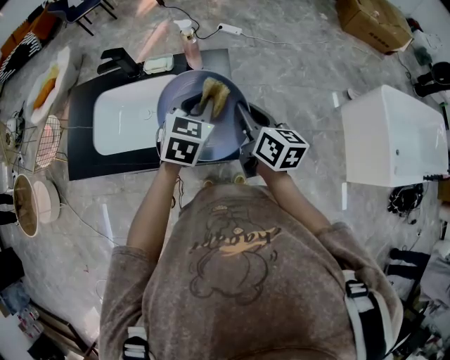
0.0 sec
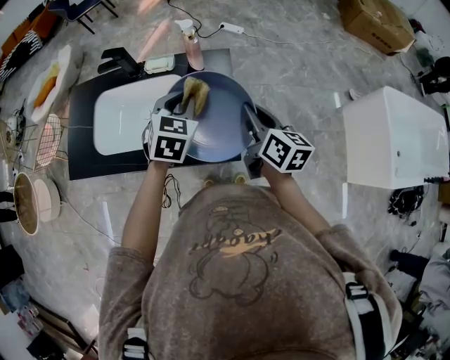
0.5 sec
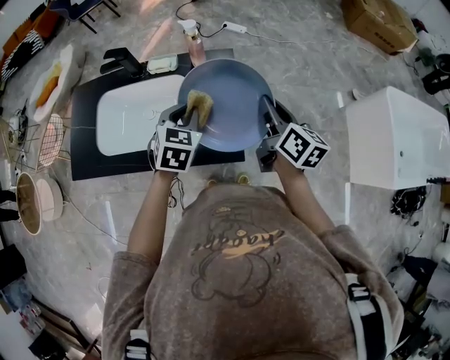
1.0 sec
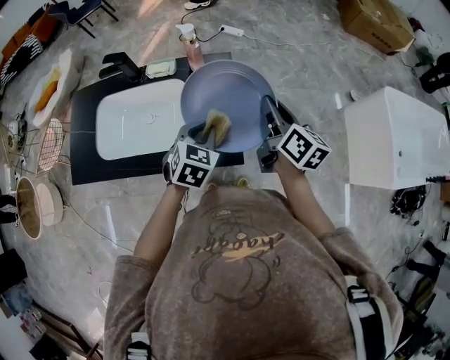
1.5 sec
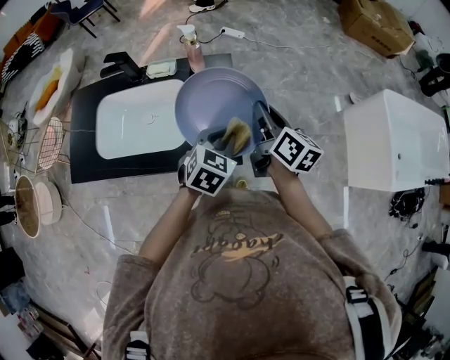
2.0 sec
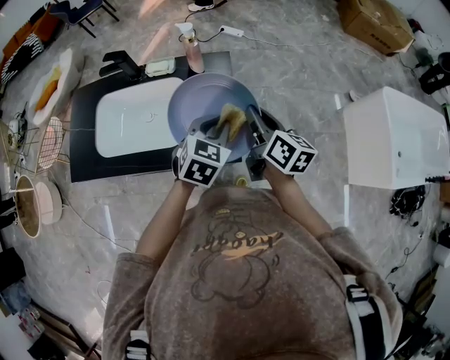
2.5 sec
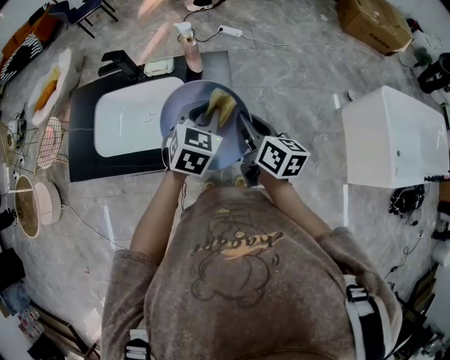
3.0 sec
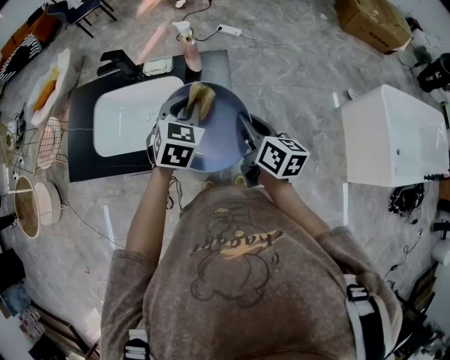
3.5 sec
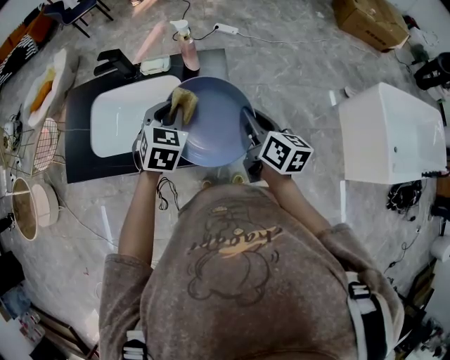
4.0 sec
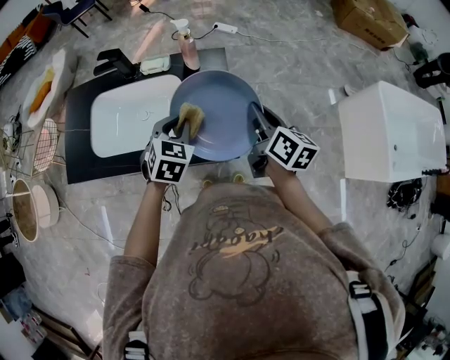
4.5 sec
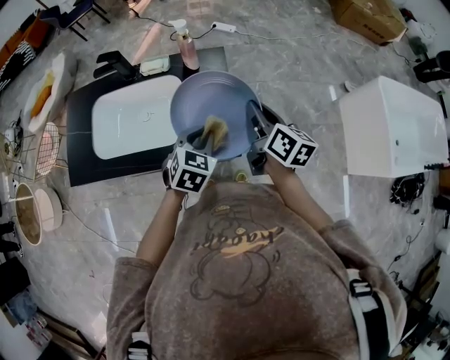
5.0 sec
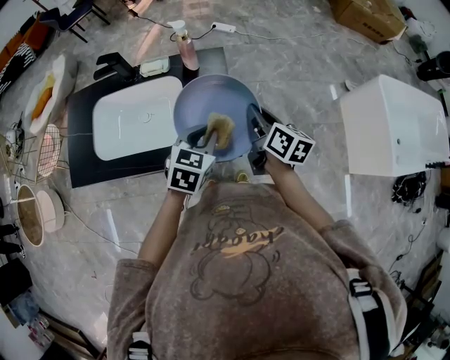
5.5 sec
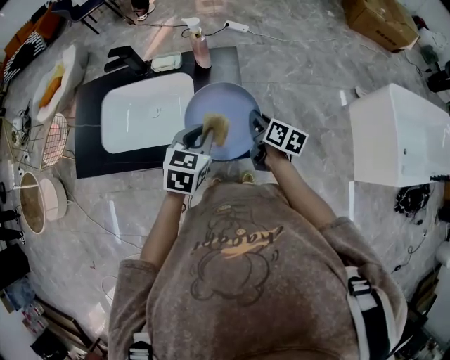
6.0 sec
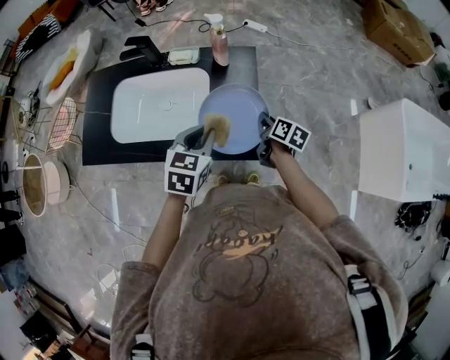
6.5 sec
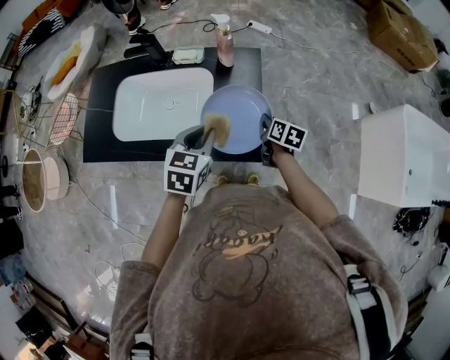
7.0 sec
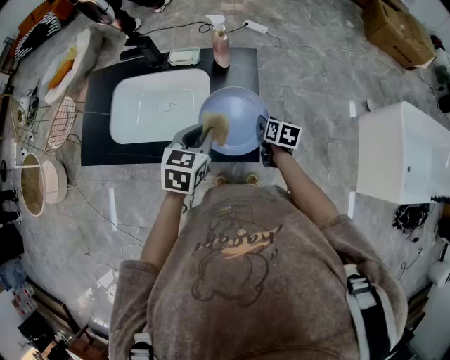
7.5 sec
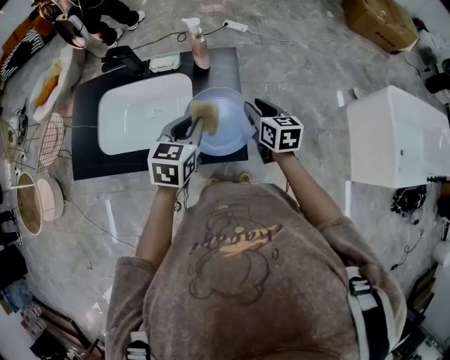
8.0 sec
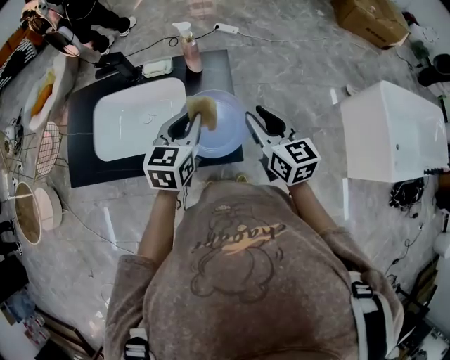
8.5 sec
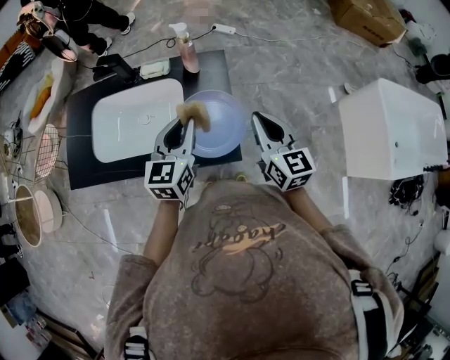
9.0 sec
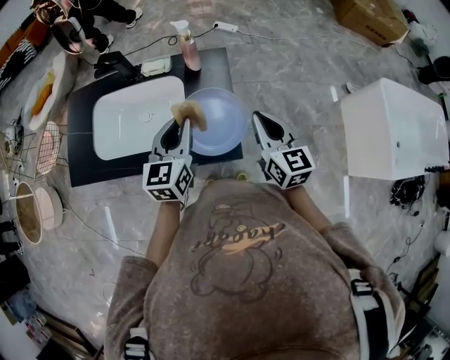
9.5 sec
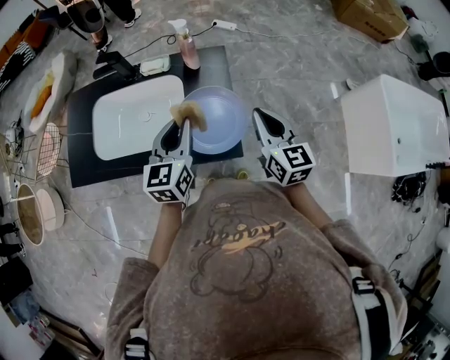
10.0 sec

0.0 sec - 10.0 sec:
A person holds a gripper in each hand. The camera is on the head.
0.0 sec - 2.0 sec: The left gripper goes some 10 cm backward and downward. Meanwhile the right gripper shifts by roughly 5 cm.
2.0 sec - 4.0 sec: The left gripper goes about 15 cm to the left and forward.
4.0 sec - 6.0 sec: The right gripper heads downward, covering about 10 cm. Meanwhile the left gripper travels backward by approximately 5 cm.
6.0 sec - 8.0 sec: The right gripper reaches approximately 10 cm downward, then returns, swivels about 30 degrees, and opens up.
8.0 sec - 10.0 sec: The right gripper is displaced upward and backward by roughly 10 cm, and closes, while the left gripper turns by about 20 degrees.

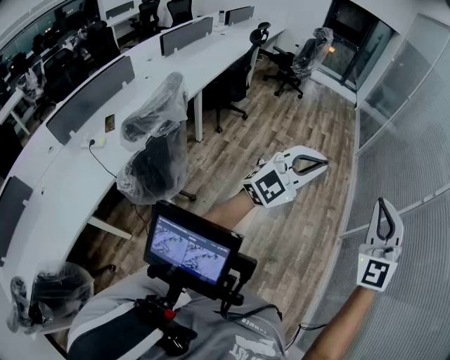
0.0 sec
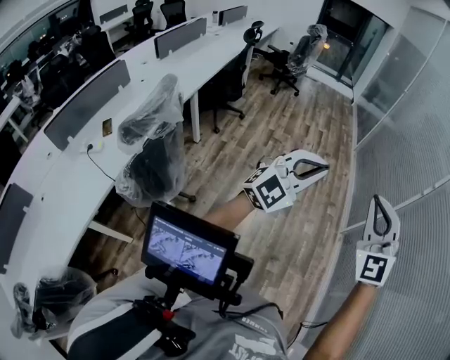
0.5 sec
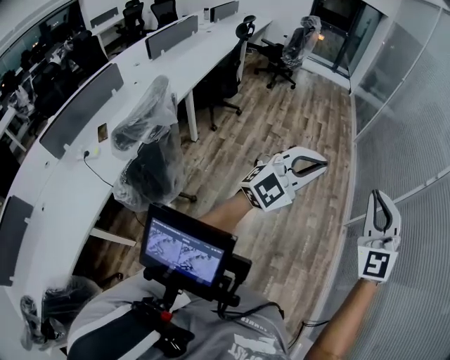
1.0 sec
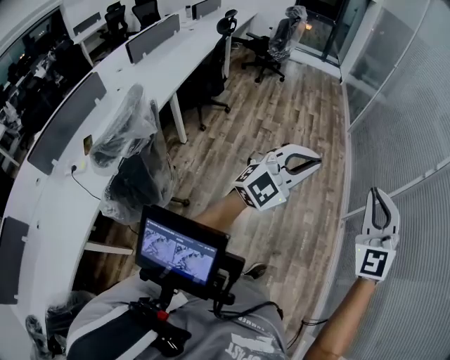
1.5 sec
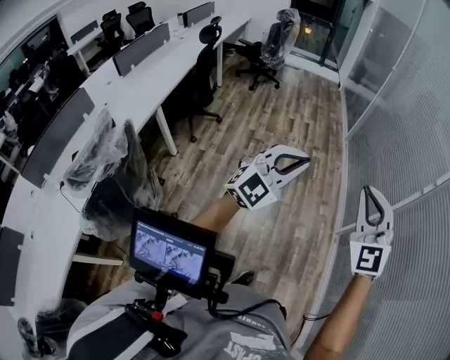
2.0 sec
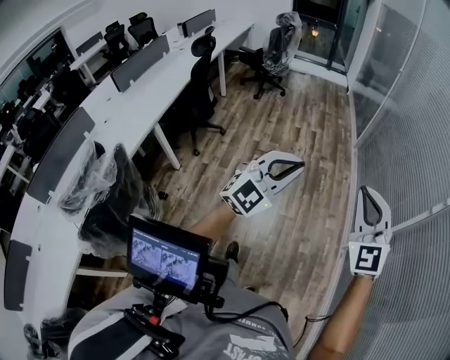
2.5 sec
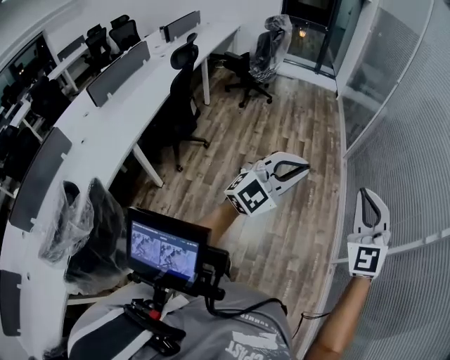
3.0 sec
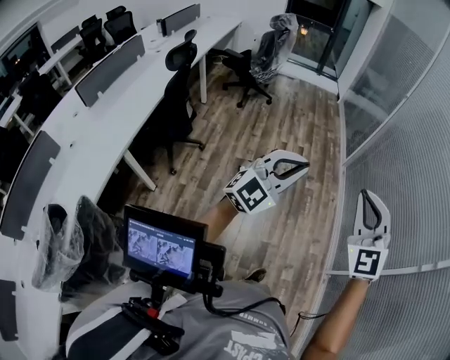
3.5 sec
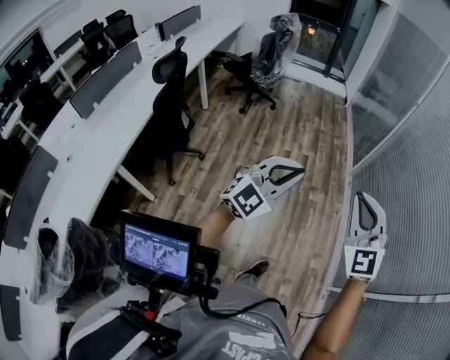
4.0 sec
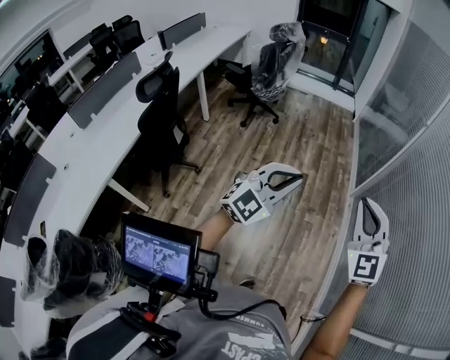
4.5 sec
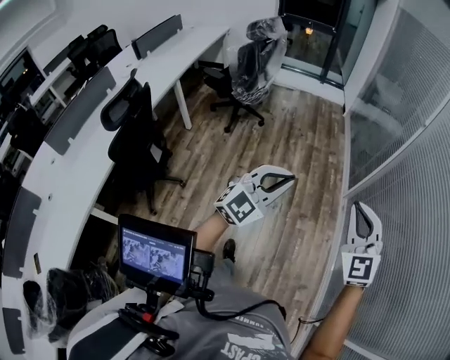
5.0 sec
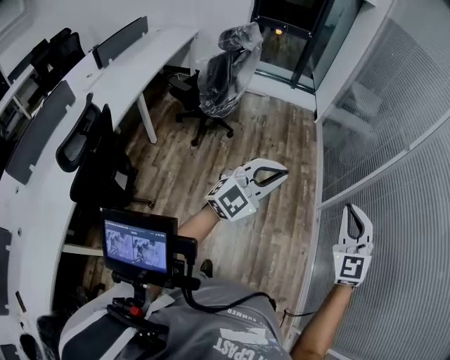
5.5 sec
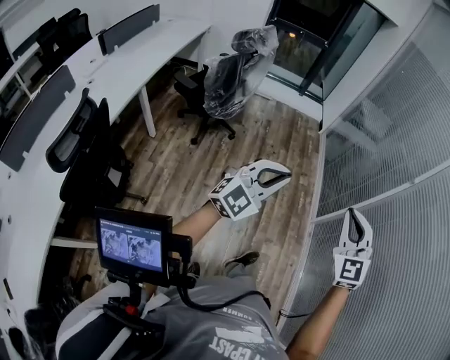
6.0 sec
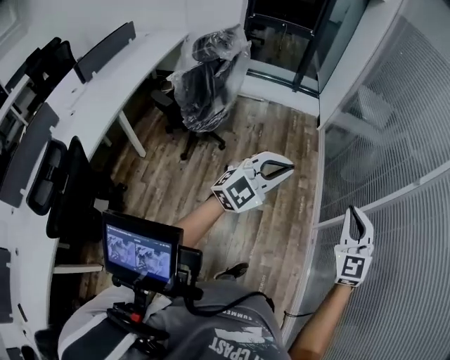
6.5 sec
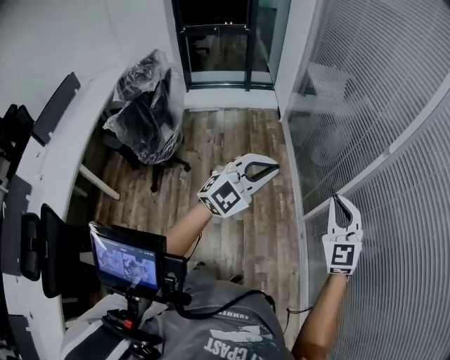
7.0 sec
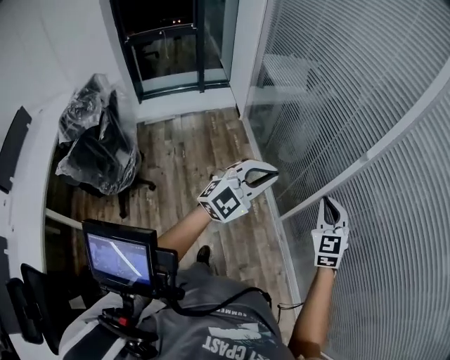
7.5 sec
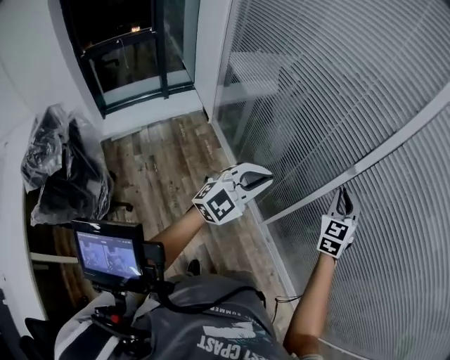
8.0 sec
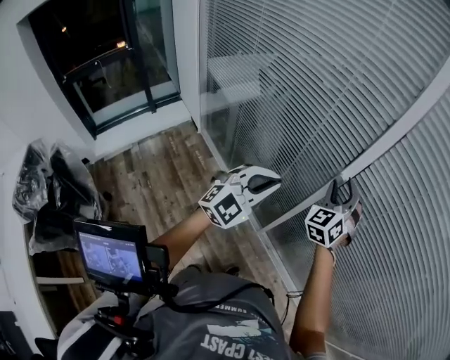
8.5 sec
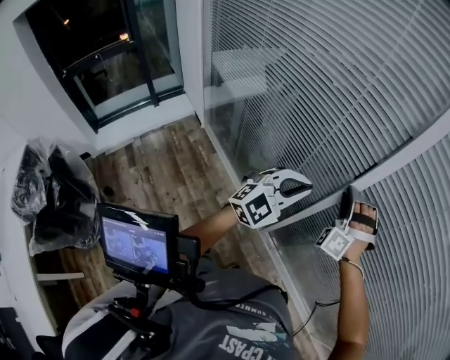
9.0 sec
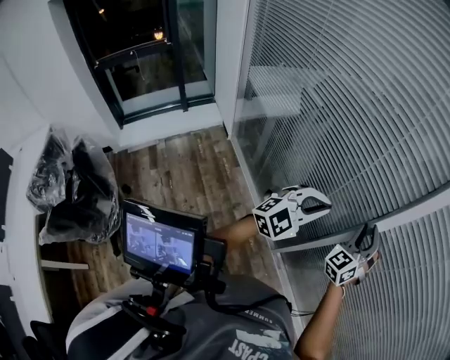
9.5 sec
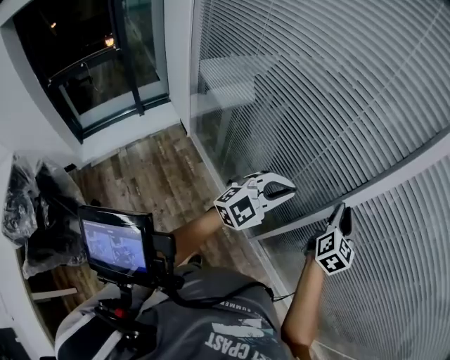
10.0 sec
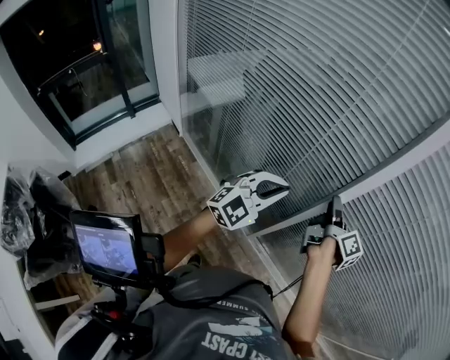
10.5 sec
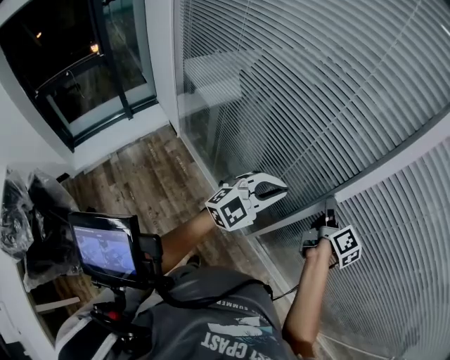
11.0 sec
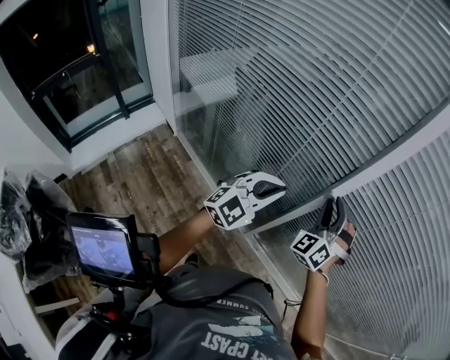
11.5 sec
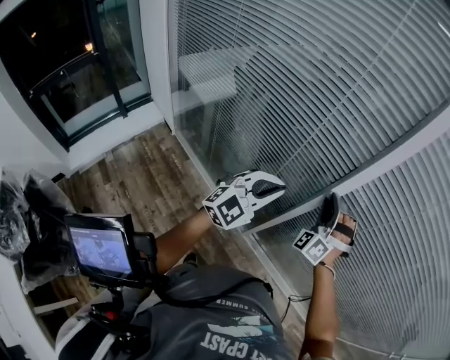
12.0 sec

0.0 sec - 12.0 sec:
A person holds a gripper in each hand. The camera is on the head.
0.0 sec - 2.0 sec: The grippers both shift forward by about 25 cm.
2.0 sec - 4.0 sec: The two grippers travel together, forward, some 60 cm.
4.0 sec - 6.0 sec: Both grippers are carried forward, about 60 cm.
6.0 sec - 8.0 sec: Both grippers are carried roughly 70 cm. The left gripper changes its angle by some 40 degrees, while the right gripper turns by some 60 degrees.
8.0 sec - 10.0 sec: The grippers both shift forward by approximately 20 cm. The right gripper twists some 40 degrees clockwise, seen from behind, and opens, then closes again.
10.0 sec - 12.0 sec: The right gripper twists some 90 degrees counterclockwise, seen from behind.

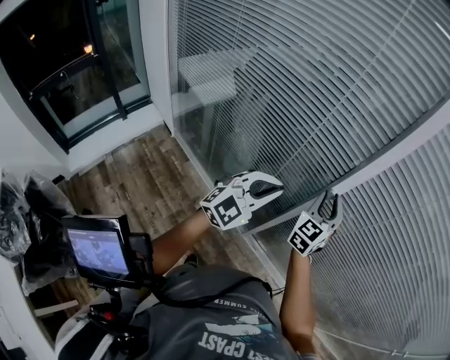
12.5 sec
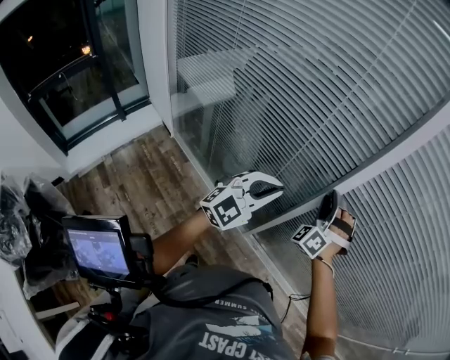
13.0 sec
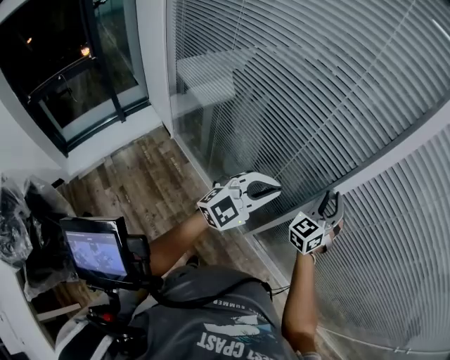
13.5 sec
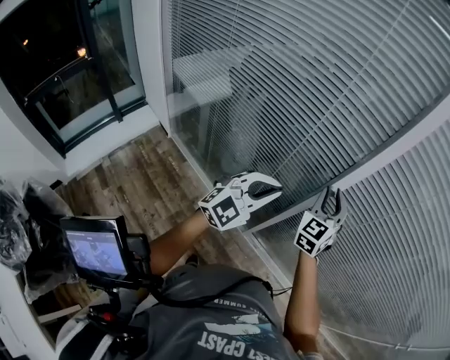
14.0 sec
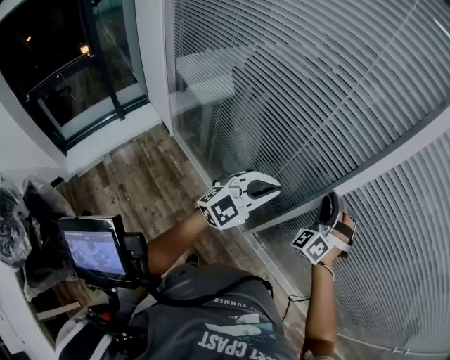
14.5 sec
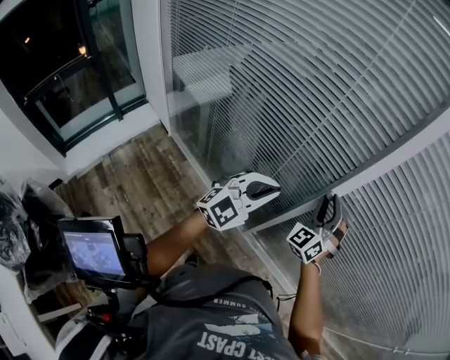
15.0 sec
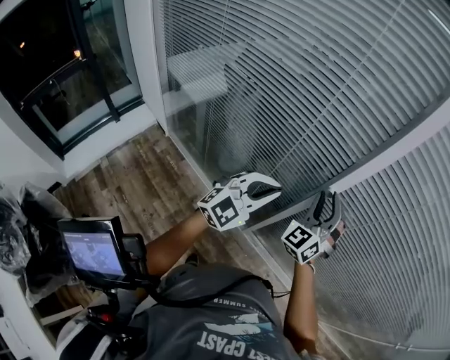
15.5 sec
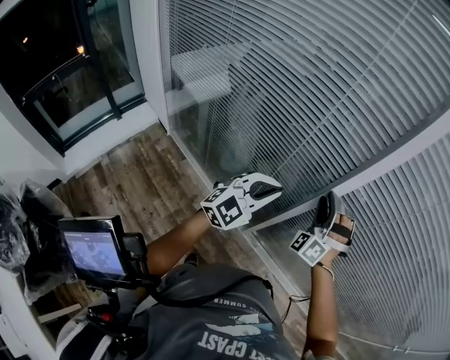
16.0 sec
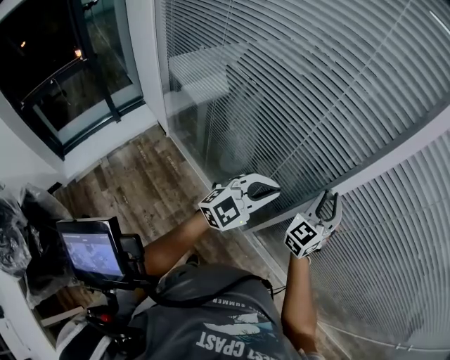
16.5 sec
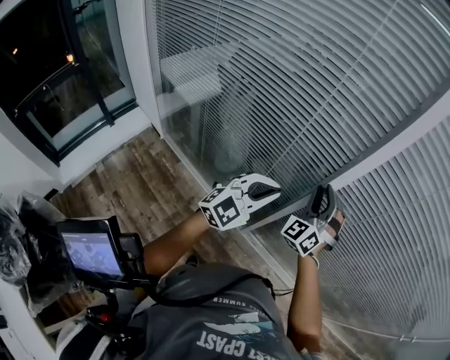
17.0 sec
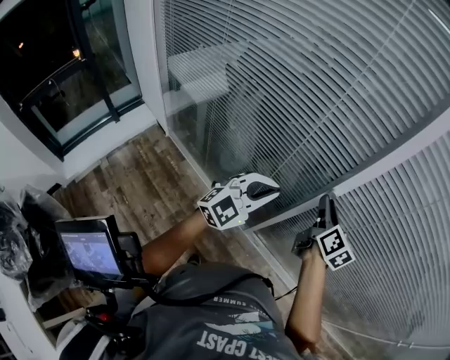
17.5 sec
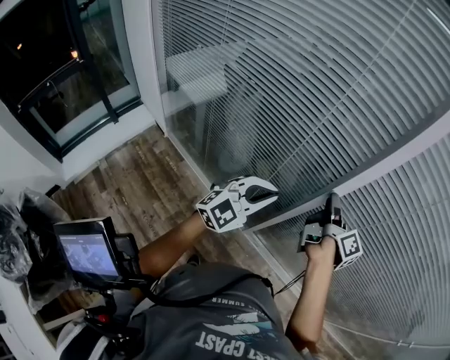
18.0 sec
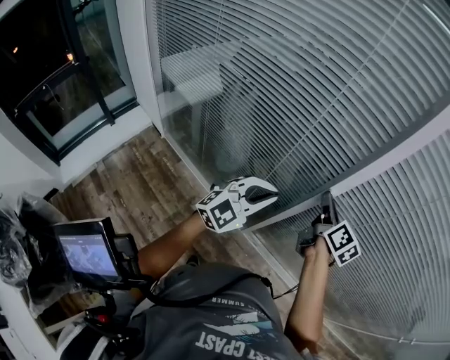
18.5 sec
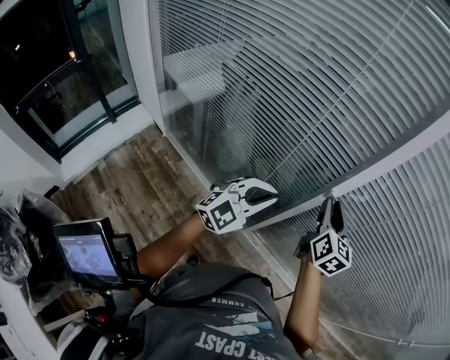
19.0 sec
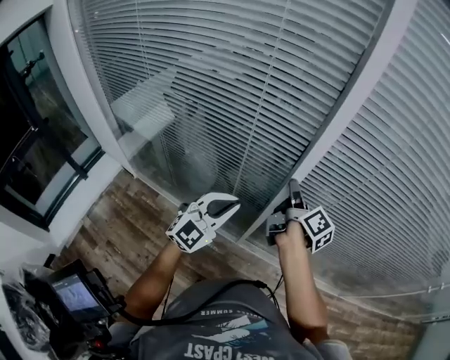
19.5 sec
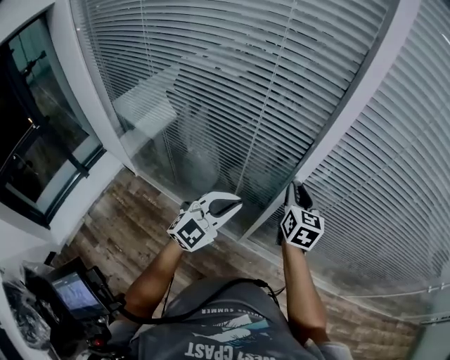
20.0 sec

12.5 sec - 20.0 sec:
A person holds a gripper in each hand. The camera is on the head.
12.5 sec - 14.5 sec: The right gripper rolls counterclockwise, seen from behind, by some 60 degrees.
14.5 sec - 16.5 sec: The right gripper twists some 50 degrees clockwise, seen from behind.
16.5 sec - 18.0 sec: The right gripper moves approximately 5 cm, and twists approximately 110 degrees clockwise, seen from behind.
18.0 sec - 20.0 sec: The right gripper twists approximately 70 degrees counterclockwise, seen from behind.
